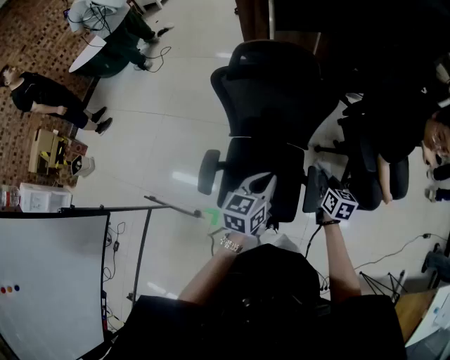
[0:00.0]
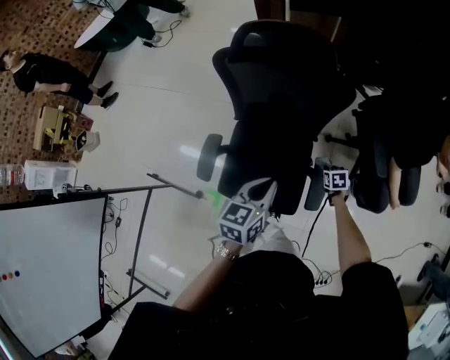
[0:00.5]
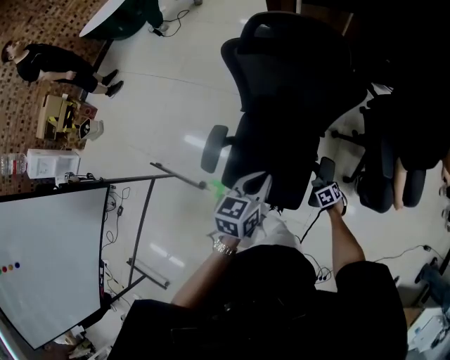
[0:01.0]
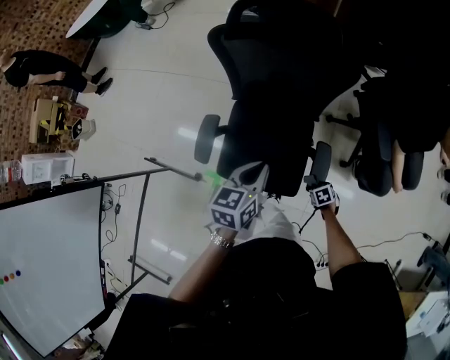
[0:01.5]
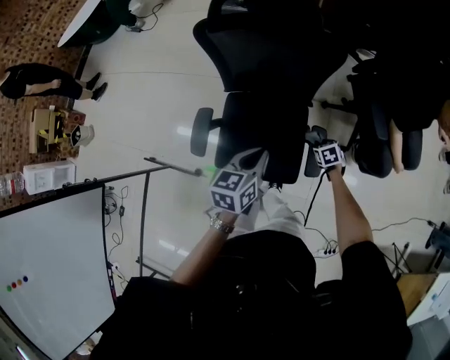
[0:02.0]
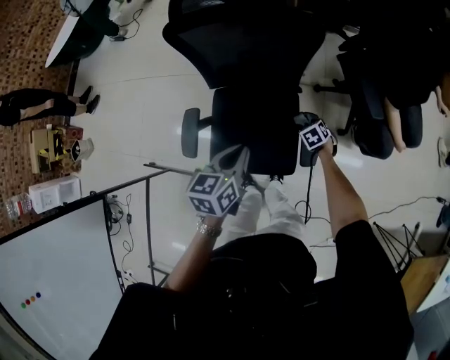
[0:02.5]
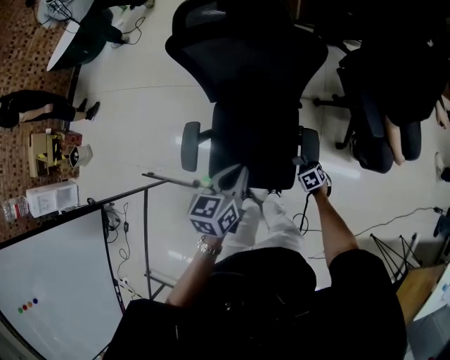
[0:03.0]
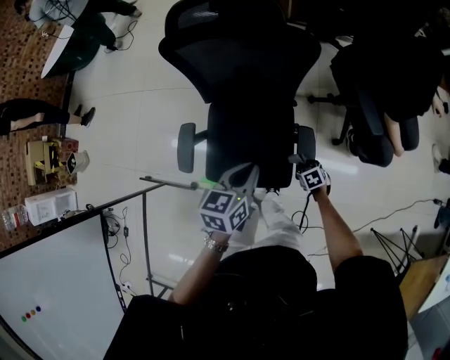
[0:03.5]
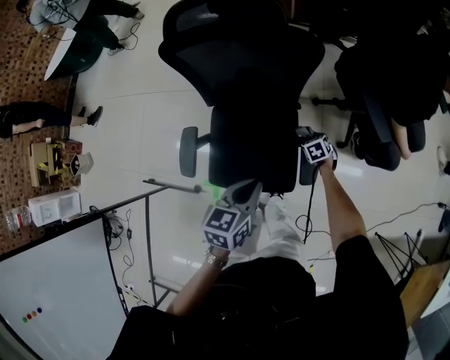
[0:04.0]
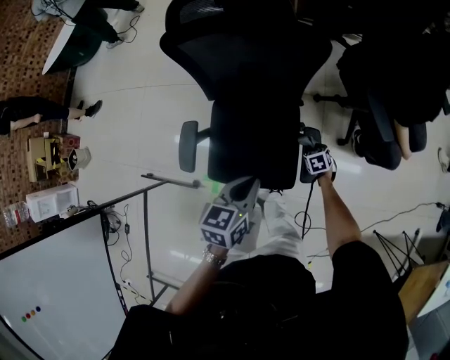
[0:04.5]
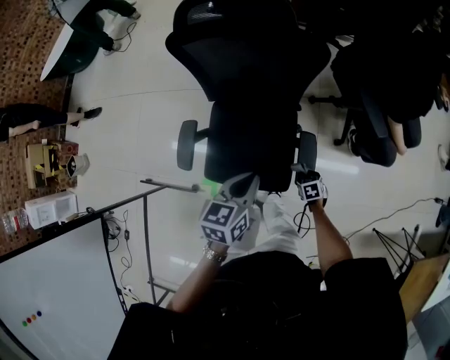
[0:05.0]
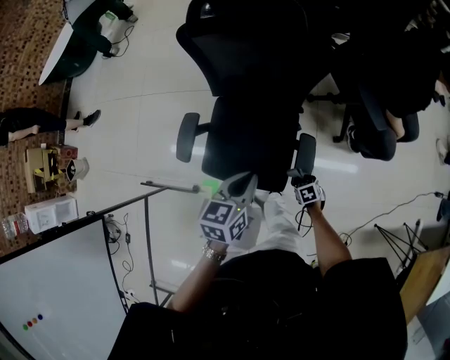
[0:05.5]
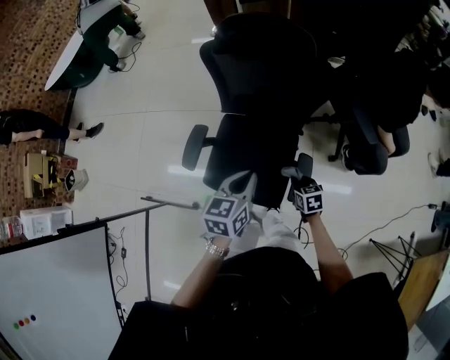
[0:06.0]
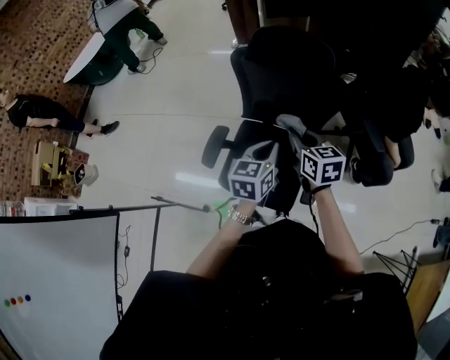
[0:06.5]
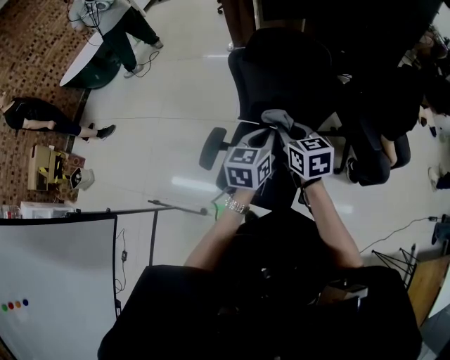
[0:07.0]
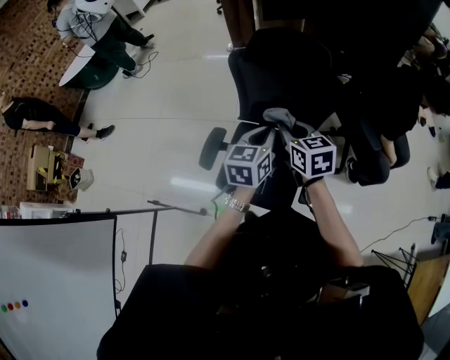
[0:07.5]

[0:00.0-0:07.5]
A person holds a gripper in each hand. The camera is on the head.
0:00.0 to 0:02.0: The right gripper is displaced downward by about 20 cm, and turns by roughly 40 degrees; the left gripper is displaced downward by some 5 cm.
0:02.0 to 0:04.0: The left gripper ends up some 5 cm from where it was, while the right gripper travels downward by approximately 5 cm.
0:04.0 to 0:05.5: The right gripper travels backward by roughly 20 cm.
0:05.5 to 0:07.5: The right gripper moves upward, about 50 cm, and points its fingers roughly 40 degrees further upward. The left gripper shifts approximately 15 cm upward and forward.

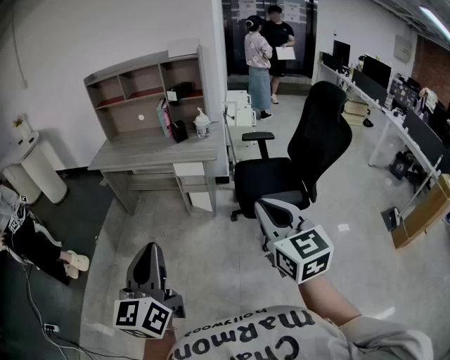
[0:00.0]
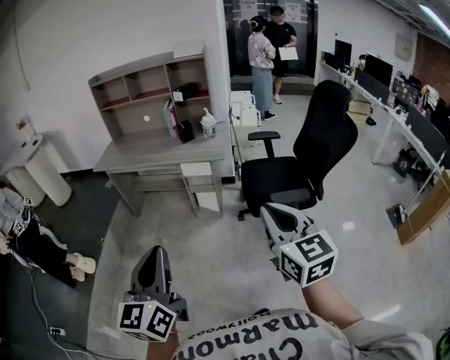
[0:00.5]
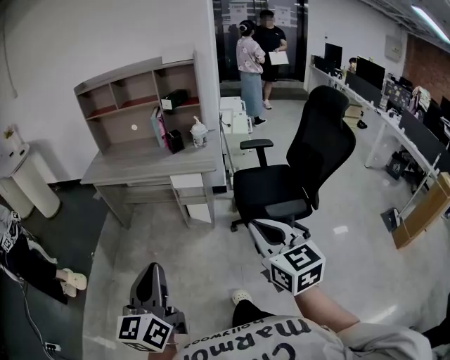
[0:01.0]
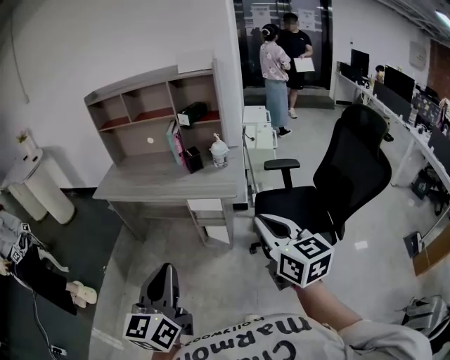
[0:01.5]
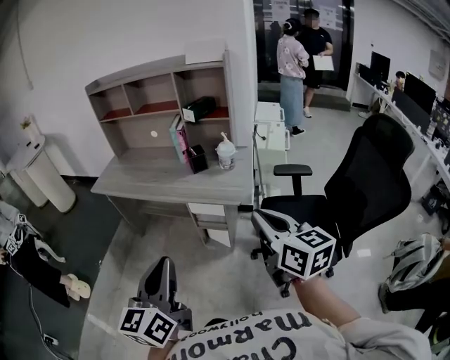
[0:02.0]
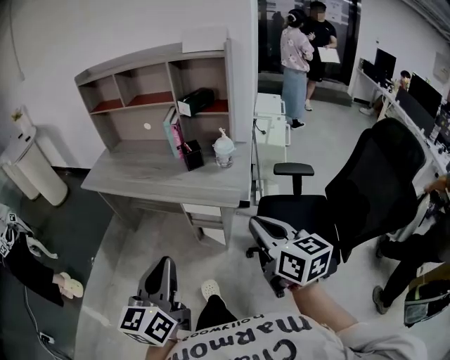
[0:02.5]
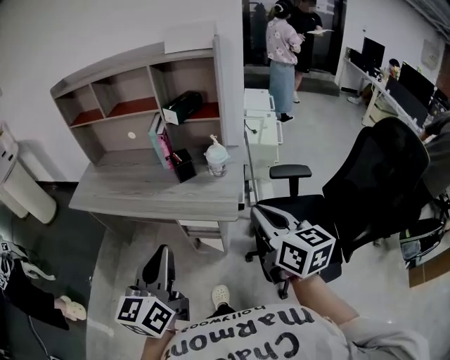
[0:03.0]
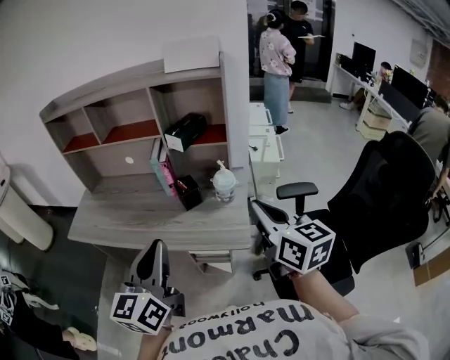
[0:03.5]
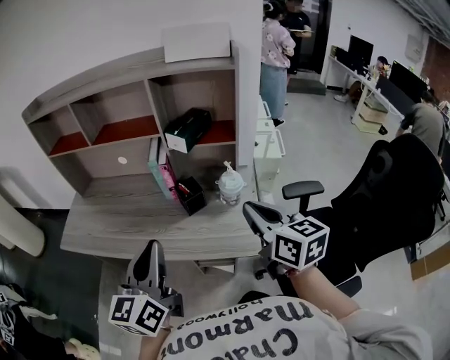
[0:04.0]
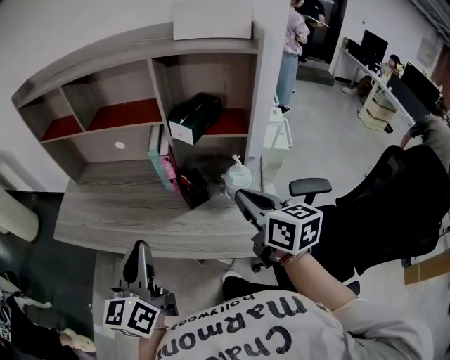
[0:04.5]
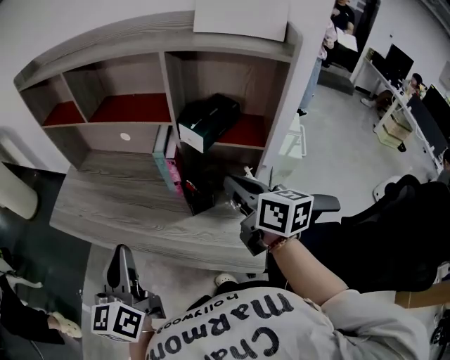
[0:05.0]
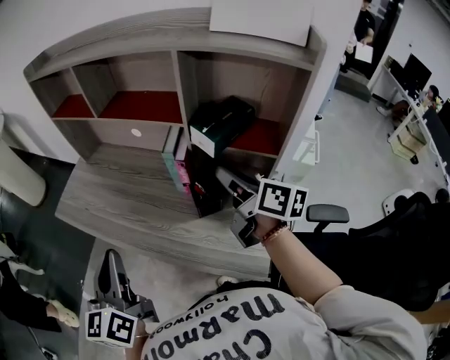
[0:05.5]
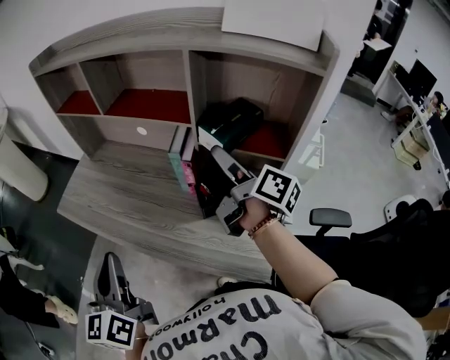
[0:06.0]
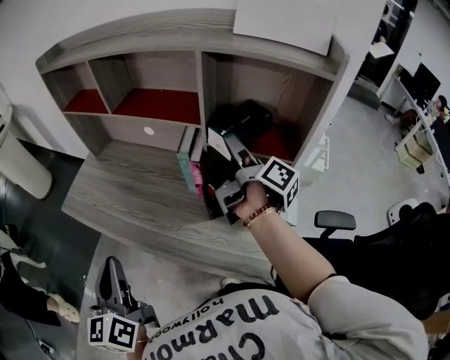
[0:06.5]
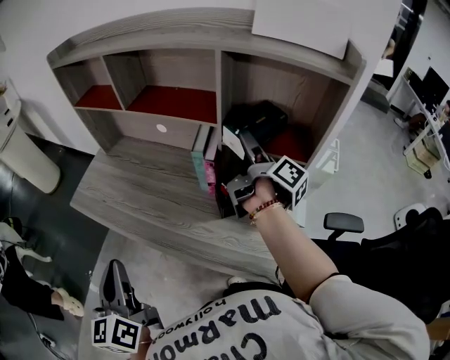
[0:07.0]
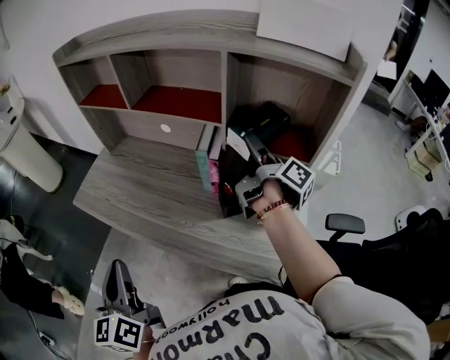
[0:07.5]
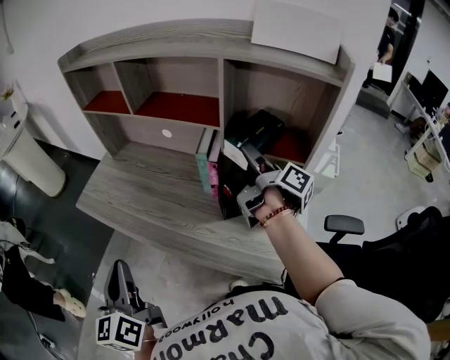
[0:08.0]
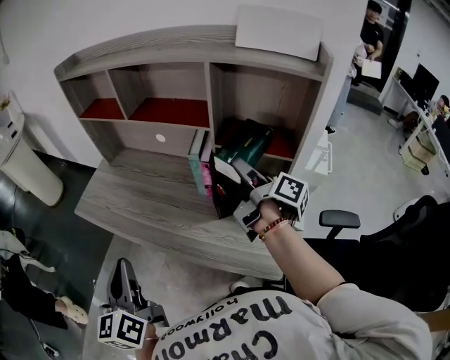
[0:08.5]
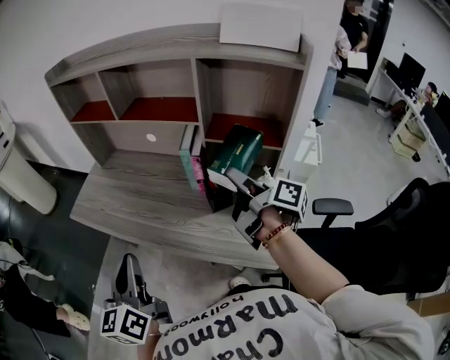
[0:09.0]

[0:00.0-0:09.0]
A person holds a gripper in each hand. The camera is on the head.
0:00.0 to 0:02.0: The grippers both shift forward by about 30 cm. The right gripper changes its angle by about 30 degrees.
0:02.0 to 0:04.5: The two grippers travel together, forward, roughly 40 cm.
0:04.5 to 0:07.0: The left gripper travels to the left by about 10 cm, and changes its angle by approximately 30 degrees. The right gripper is displaced forward by about 25 cm, rotates around the line of its fingers by roughly 60 degrees, clockwise from behind, and opens up.
0:07.0 to 0:09.0: The right gripper shifts approximately 15 cm backward.

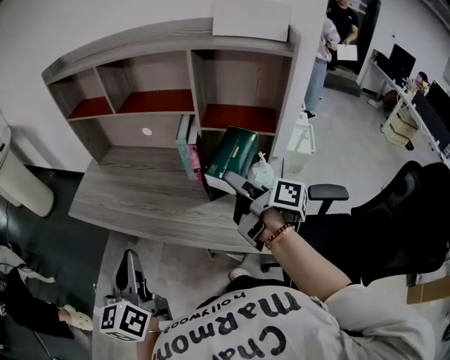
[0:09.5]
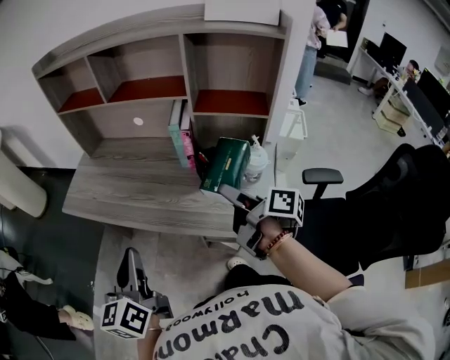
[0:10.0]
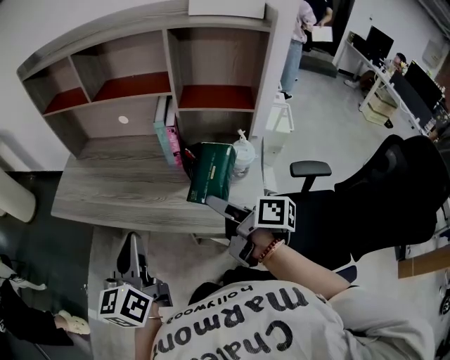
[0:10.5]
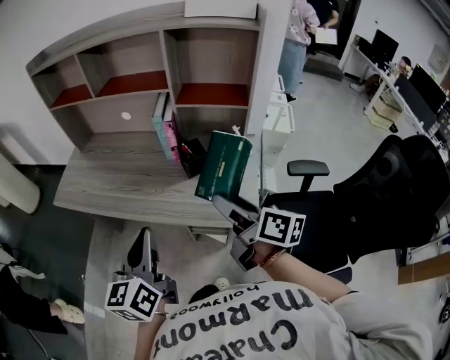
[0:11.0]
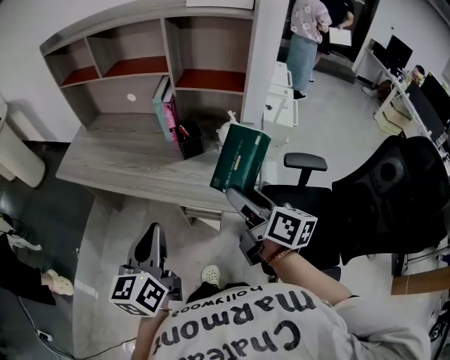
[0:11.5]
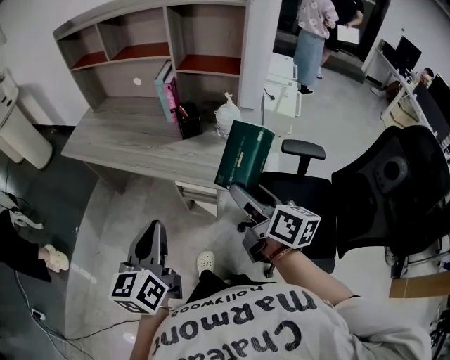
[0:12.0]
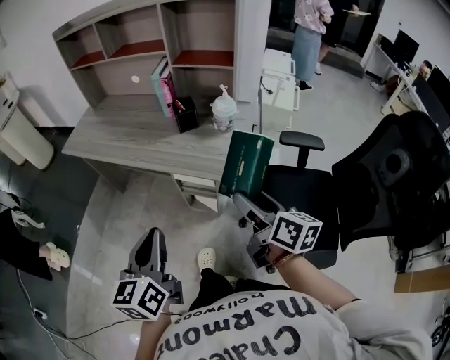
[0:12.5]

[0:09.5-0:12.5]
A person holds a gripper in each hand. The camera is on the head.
0:09.5 to 0:11.0: The left gripper shifts approximately 10 cm to the right; the right gripper heads backward, covering some 15 cm, and swivels some 20 degrees.
0:11.0 to 0:12.5: The left gripper is displaced backward by roughly 20 cm. Meanwhile the right gripper is displaced backward and to the right by some 20 cm.

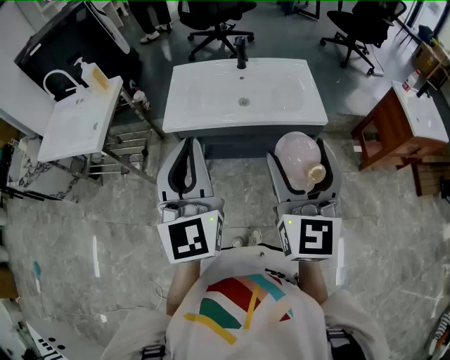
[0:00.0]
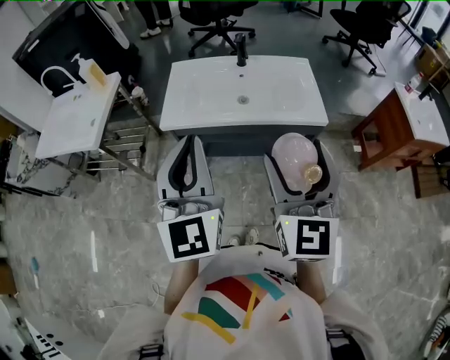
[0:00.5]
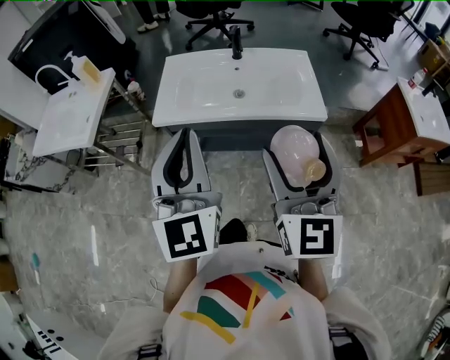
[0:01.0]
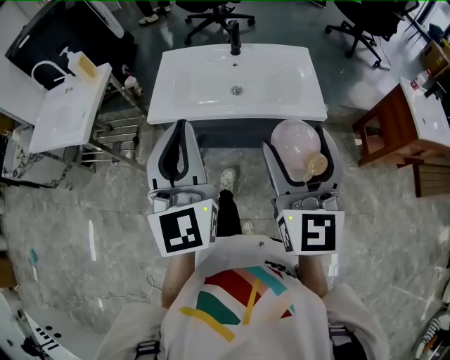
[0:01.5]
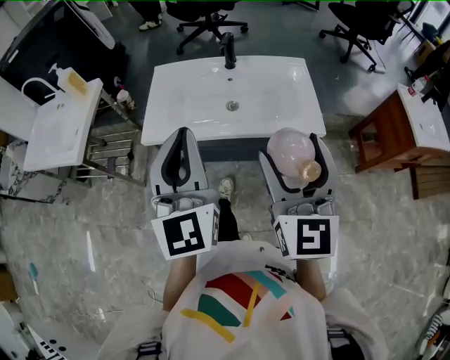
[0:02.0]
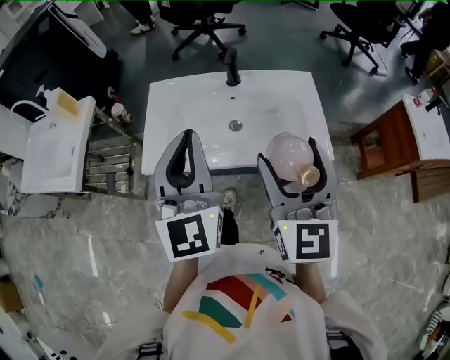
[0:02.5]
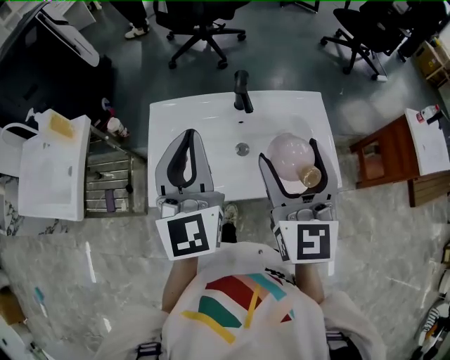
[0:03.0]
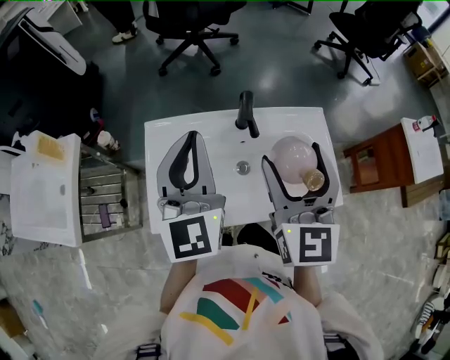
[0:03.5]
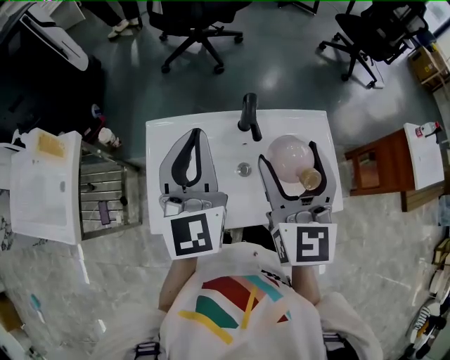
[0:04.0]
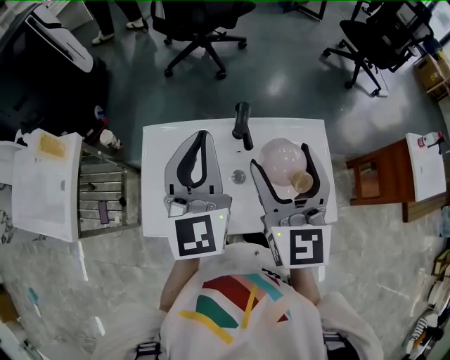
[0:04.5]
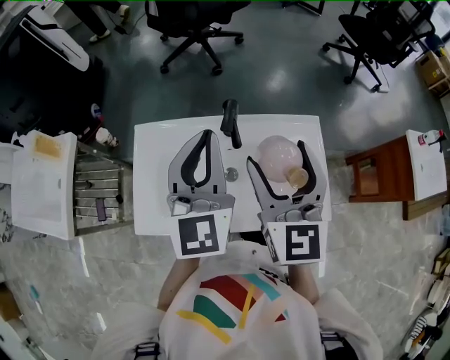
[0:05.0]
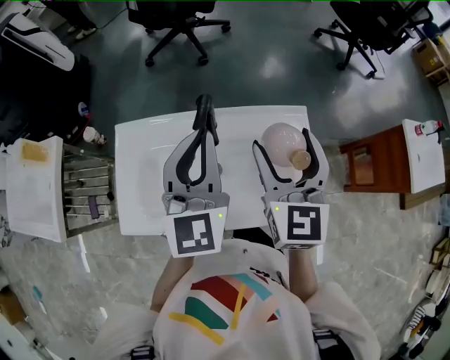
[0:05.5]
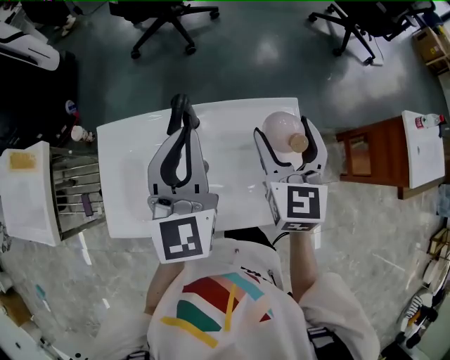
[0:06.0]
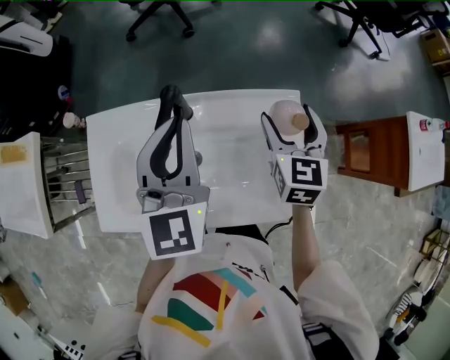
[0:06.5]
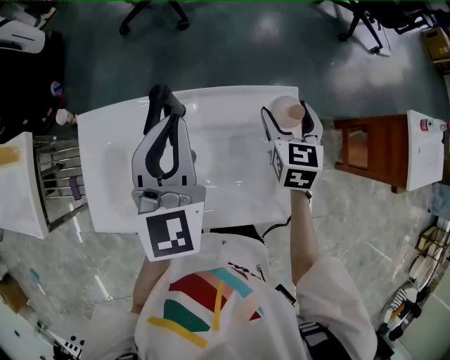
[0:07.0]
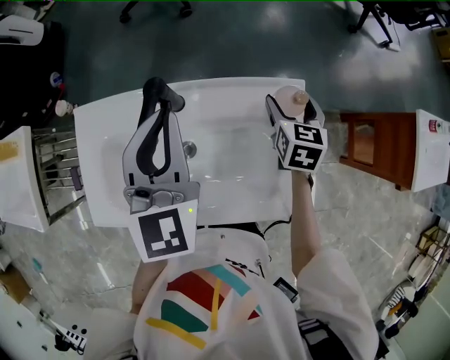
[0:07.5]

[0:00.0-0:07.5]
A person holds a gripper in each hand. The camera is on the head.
0:00.0 to 0:02.0: Both grippers move forward, roughly 10 cm.
0:02.0 to 0:04.0: The two grippers go some 35 cm forward.
0:04.0 to 0:05.5: The left gripper heads to the right, covering about 15 cm. The right gripper heads to the right and forward, covering some 15 cm.
0:05.5 to 0:07.5: The left gripper travels downward and forward by about 10 cm; the right gripper moves downward, forward and to the right, some 30 cm, and turns by some 30 degrees.
